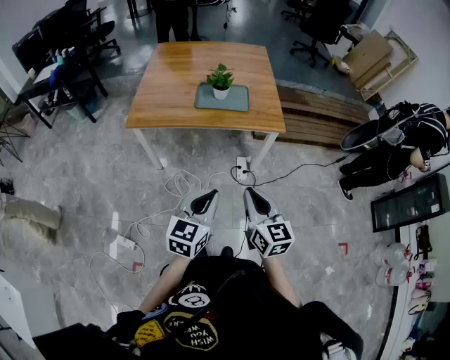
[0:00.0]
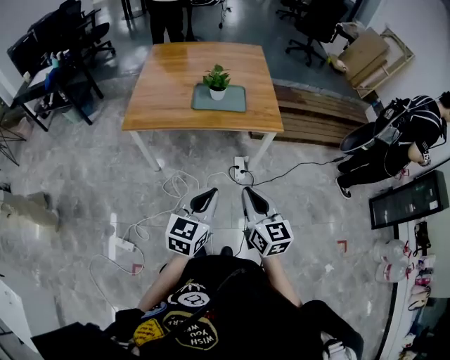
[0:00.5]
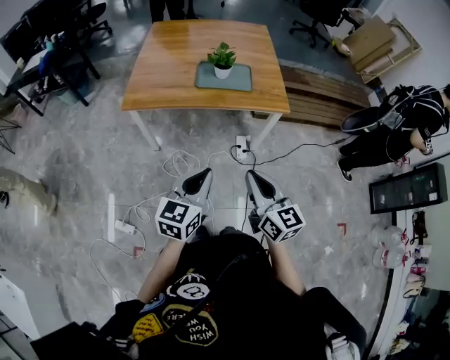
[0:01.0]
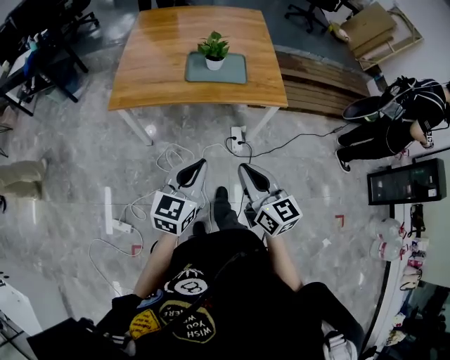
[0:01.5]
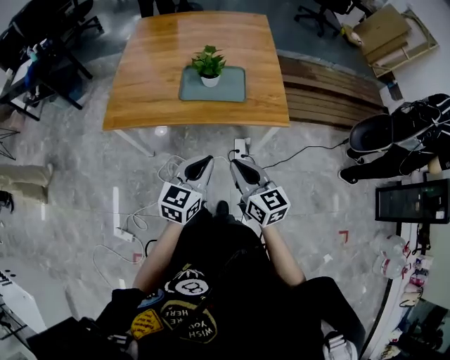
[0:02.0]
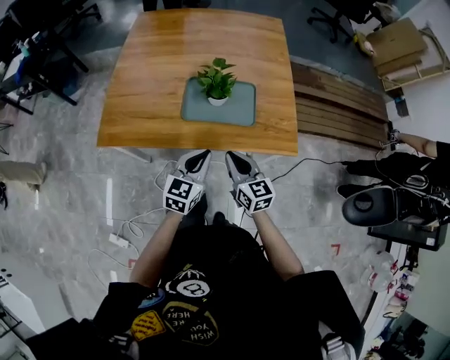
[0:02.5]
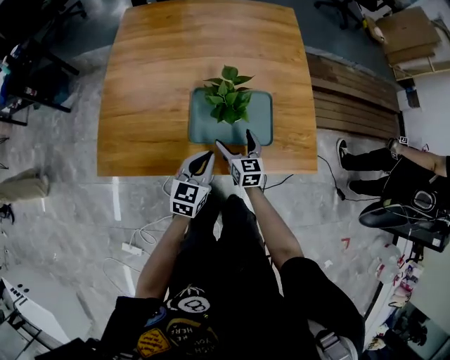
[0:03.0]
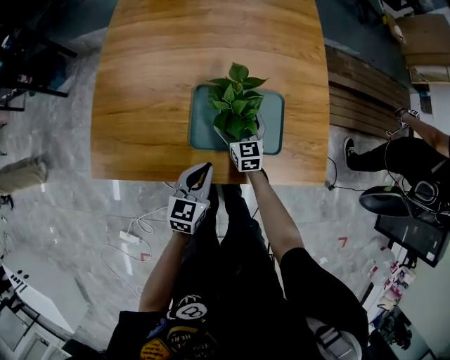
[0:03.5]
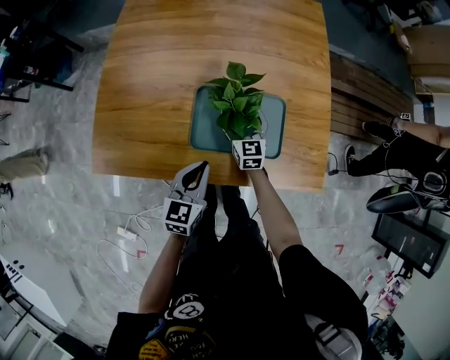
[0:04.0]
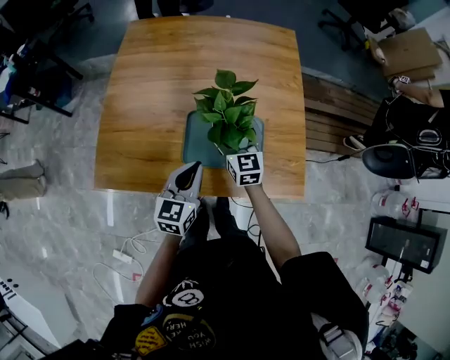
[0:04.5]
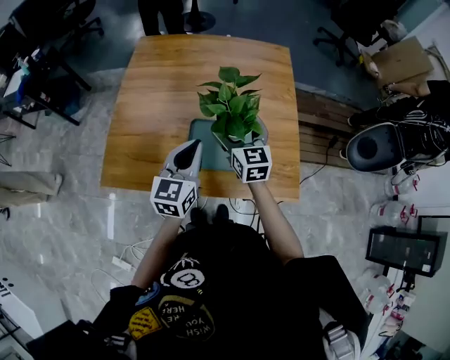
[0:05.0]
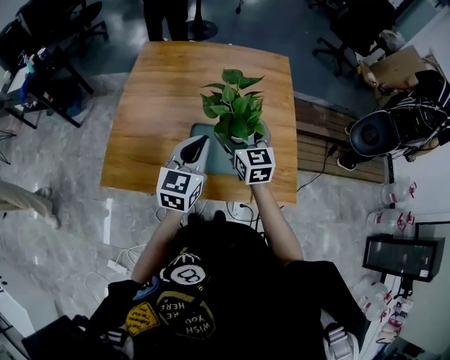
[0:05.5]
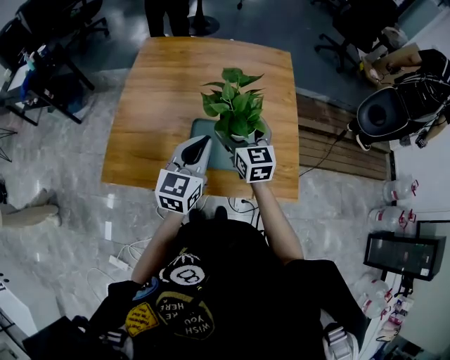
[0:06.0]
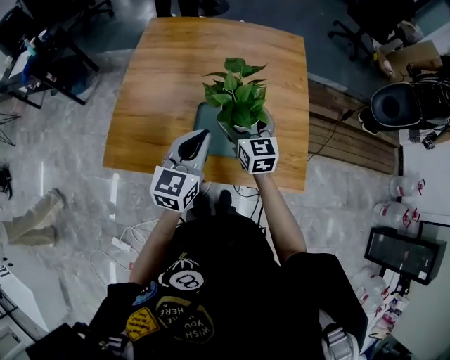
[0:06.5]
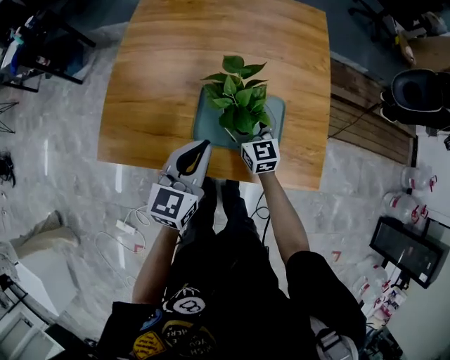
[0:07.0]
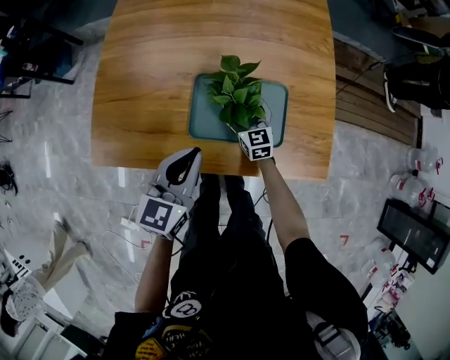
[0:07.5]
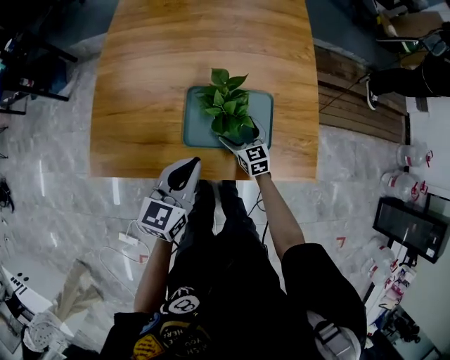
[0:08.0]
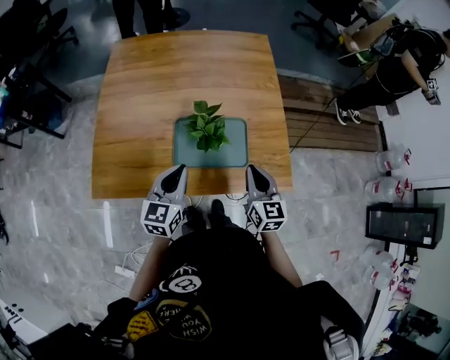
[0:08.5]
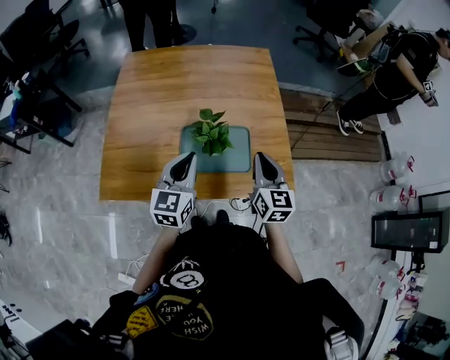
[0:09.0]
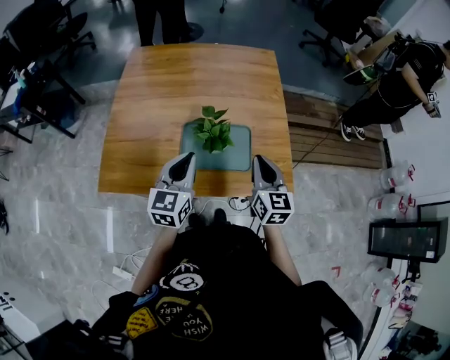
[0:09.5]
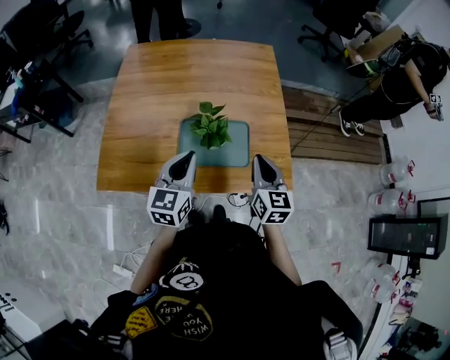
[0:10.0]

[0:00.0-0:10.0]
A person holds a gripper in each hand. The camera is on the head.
0:00.0 to 0:02.0: The grippers both shift forward by about 25 cm.
0:02.0 to 0:04.0: The right gripper shifts approximately 60 cm forward and downward, and opens its fingers, while the left gripper moves forward and downward, about 40 cm.
0:04.0 to 0:06.0: The two grippers go about 25 cm upward.
0:06.0 to 0:08.0: The left gripper goes roughly 15 cm downward. The right gripper travels downward by some 30 cm.
0:08.0 to 0:10.0: The left gripper heads upward, covering roughly 10 cm, while the right gripper travels upward by about 30 cm, rotates about 30 degrees, and closes.

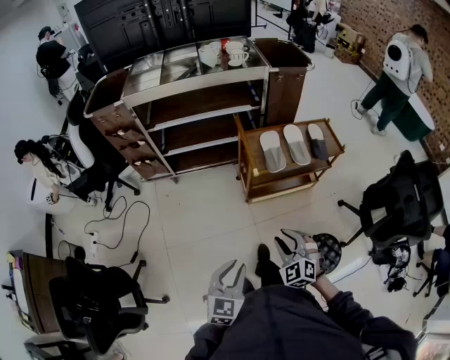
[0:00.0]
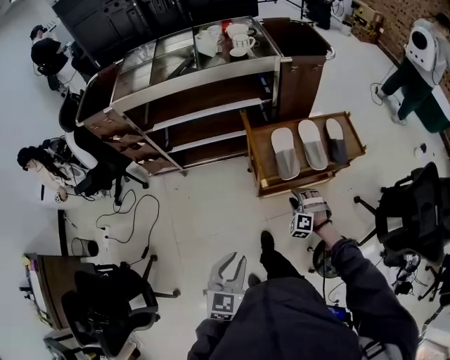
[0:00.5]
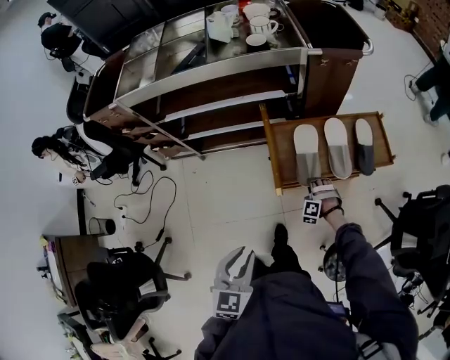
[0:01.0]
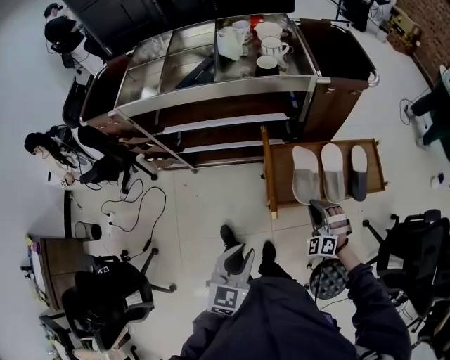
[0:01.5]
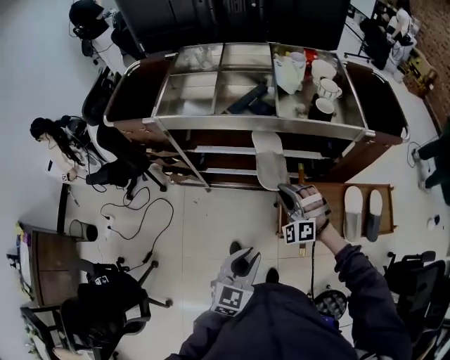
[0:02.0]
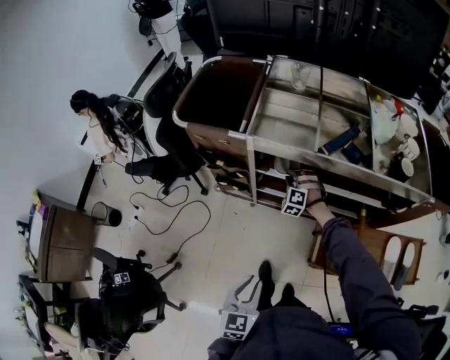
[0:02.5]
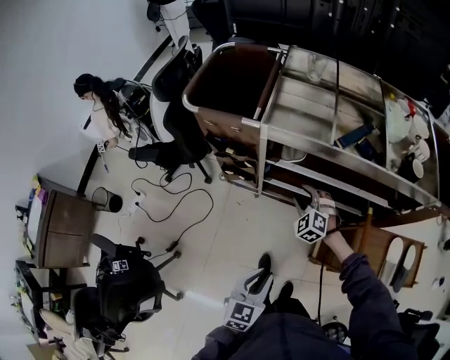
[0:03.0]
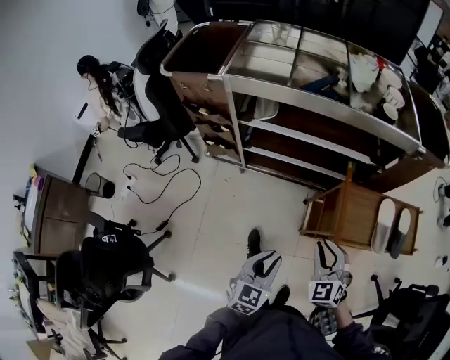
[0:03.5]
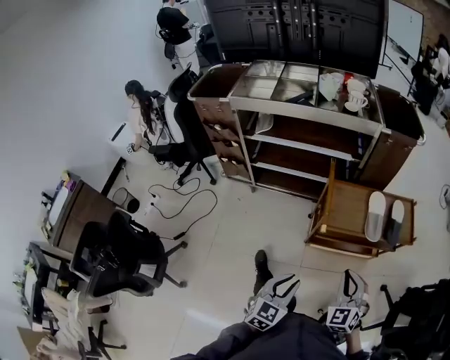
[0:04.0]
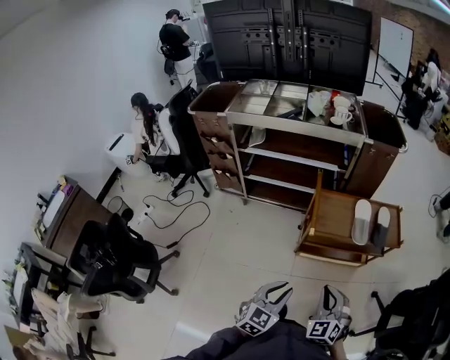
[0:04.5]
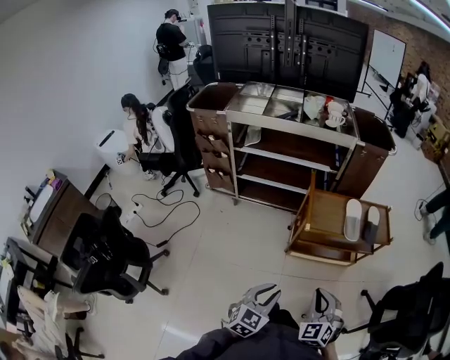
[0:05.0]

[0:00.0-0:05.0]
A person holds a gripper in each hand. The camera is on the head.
0:00.0 to 0:02.5: The two grippers travel together, forward and to the left, about 70 cm. The right gripper twists approximately 40 degrees counterclockwise, seen from behind. The left gripper turns by approximately 30 degrees.
0:02.5 to 0:05.0: Both grippers are carried backward and to the right, roughly 70 cm. The right gripper rotates about 40 degrees, and opens and closes again, while the left gripper turns by approximately 30 degrees.

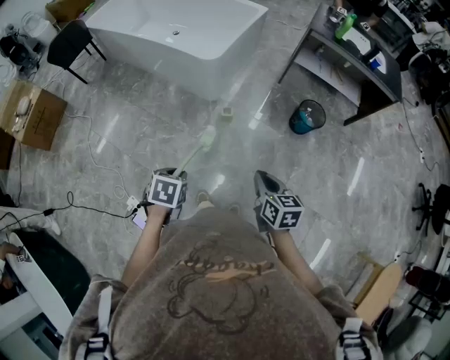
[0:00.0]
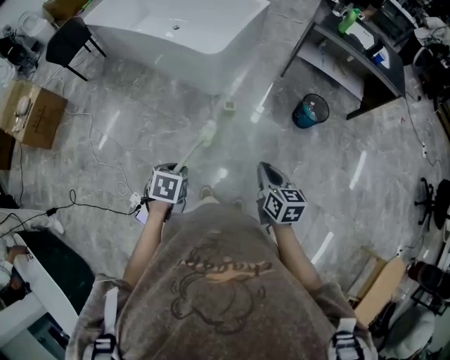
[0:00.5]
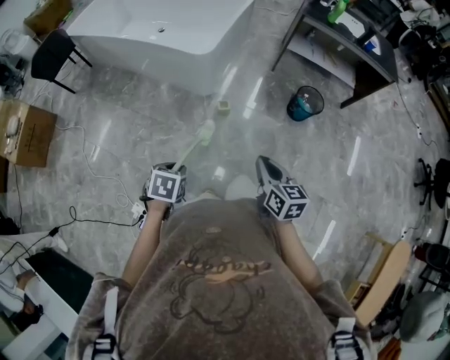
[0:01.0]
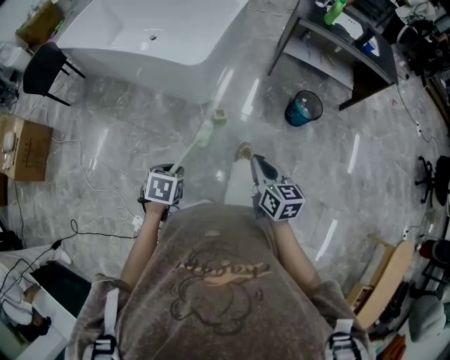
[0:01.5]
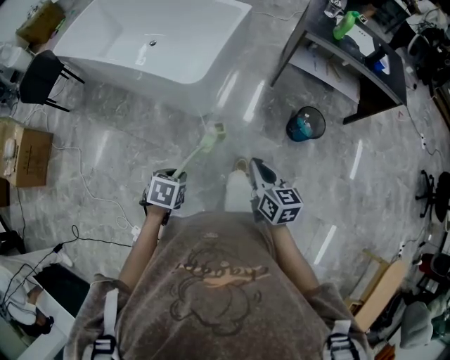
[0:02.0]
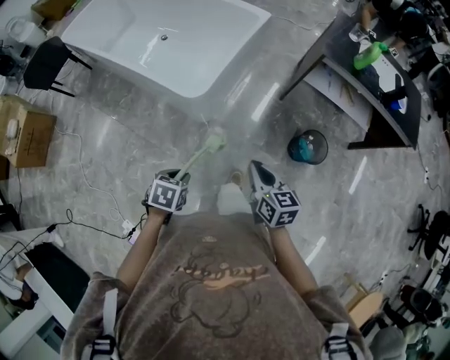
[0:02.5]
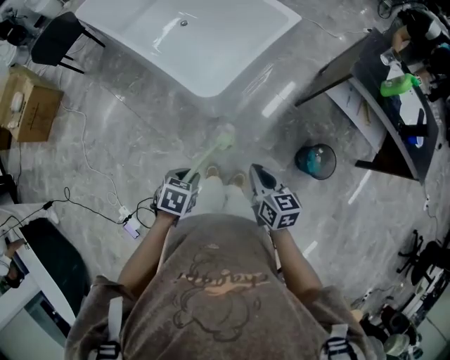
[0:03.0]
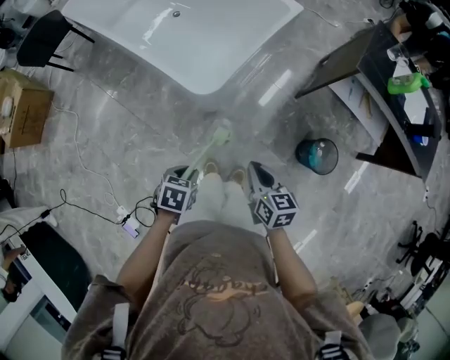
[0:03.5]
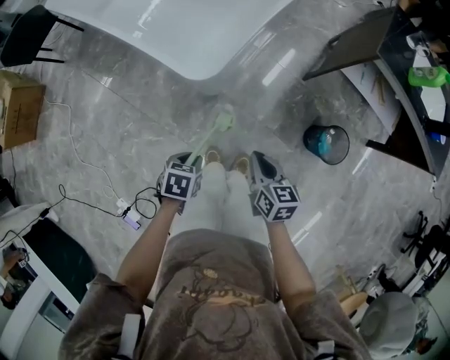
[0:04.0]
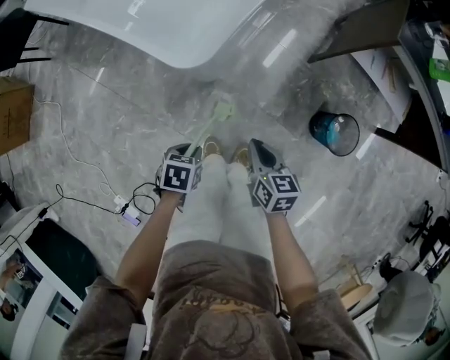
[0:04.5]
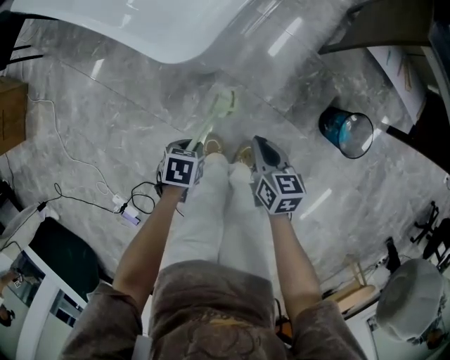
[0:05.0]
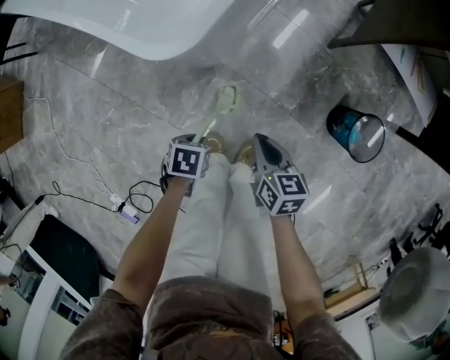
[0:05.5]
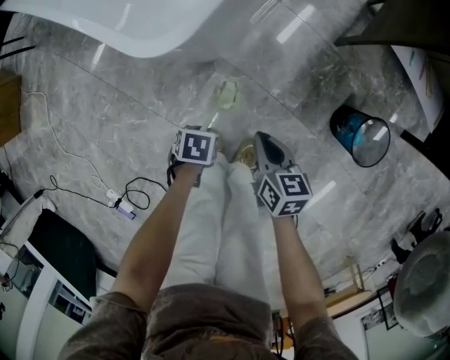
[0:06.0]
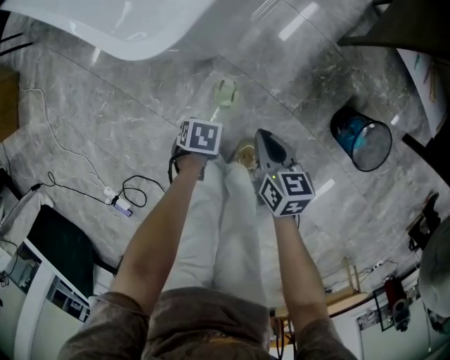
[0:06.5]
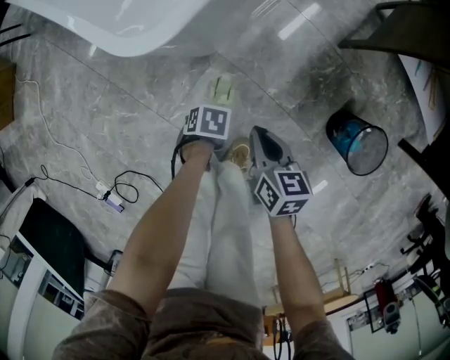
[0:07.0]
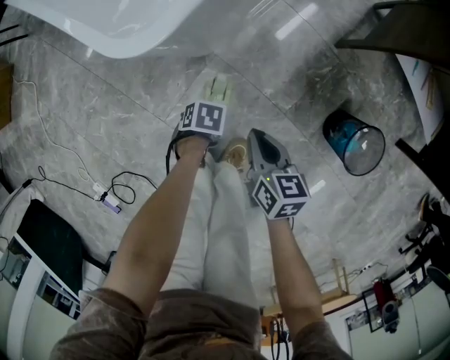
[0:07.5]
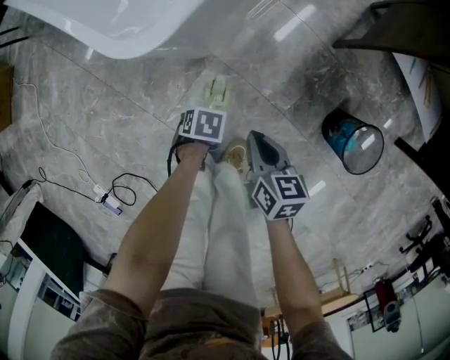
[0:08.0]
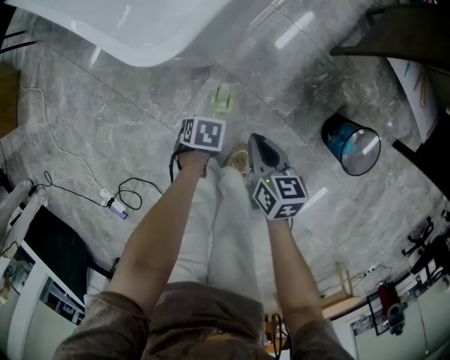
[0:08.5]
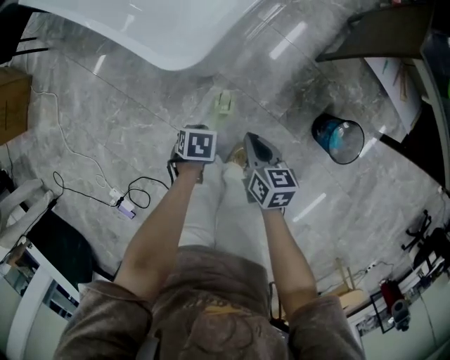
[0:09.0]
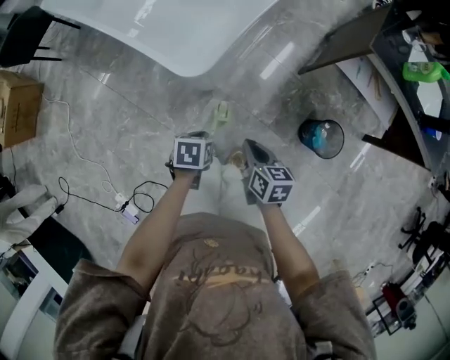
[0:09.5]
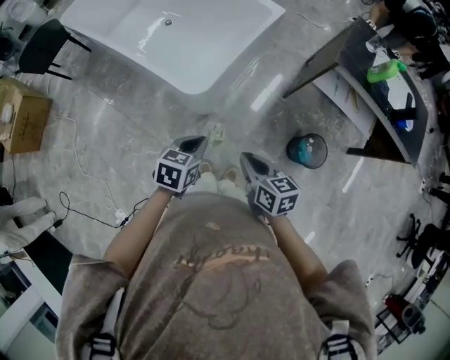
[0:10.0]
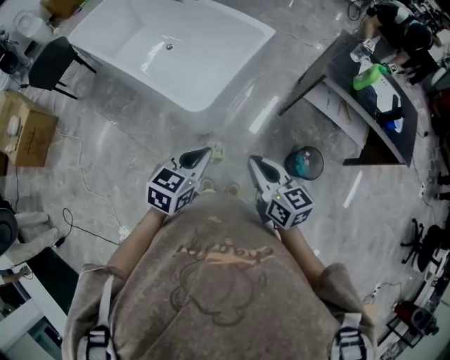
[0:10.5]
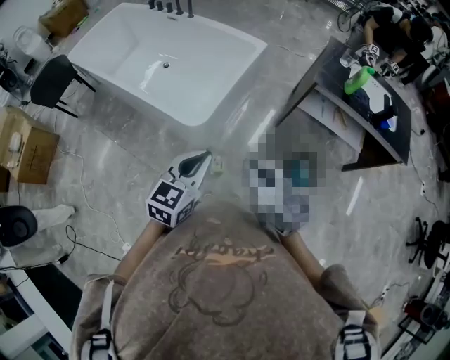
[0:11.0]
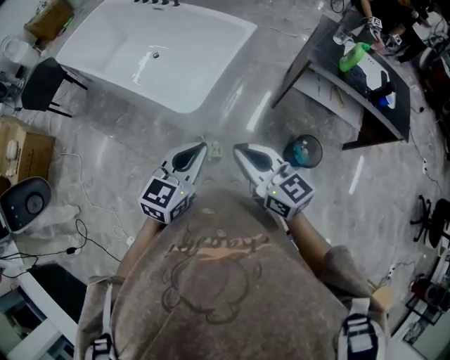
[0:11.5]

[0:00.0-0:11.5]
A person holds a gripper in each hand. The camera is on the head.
0:00.0 to 0:02.0: The grippers both shift forward by some 25 cm.
0:02.0 to 0:04.0: Both grippers move forward and downward, about 25 cm.
0:04.0 to 0:06.0: The grippers both shift downward by about 25 cm.
0:06.0 to 0:07.5: The left gripper shifts approximately 5 cm downward.
0:07.5 to 0:09.5: Both grippers travel together upward, some 30 cm. The left gripper rotates about 30 degrees, and closes.
0:09.5 to 0:11.5: The grippers both shift upward by roughly 35 cm. The left gripper points its fingers approximately 50 degrees further upward. Meanwhile the right gripper tilts its fingers roughly 30 degrees upward.
